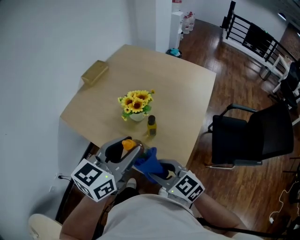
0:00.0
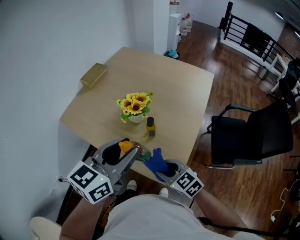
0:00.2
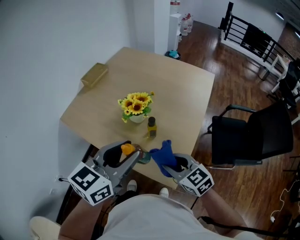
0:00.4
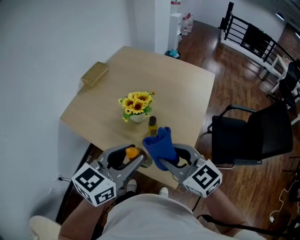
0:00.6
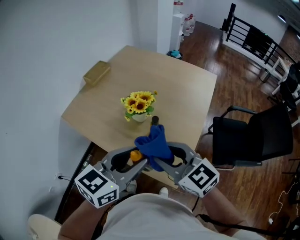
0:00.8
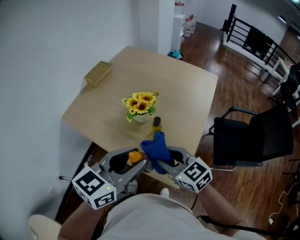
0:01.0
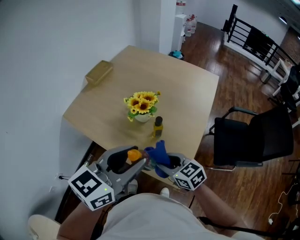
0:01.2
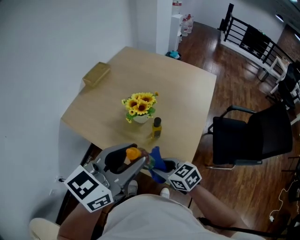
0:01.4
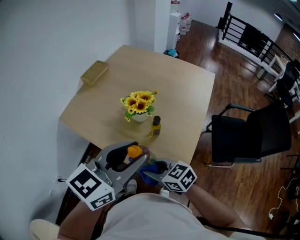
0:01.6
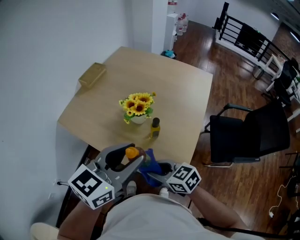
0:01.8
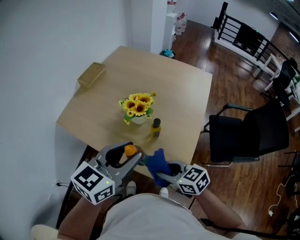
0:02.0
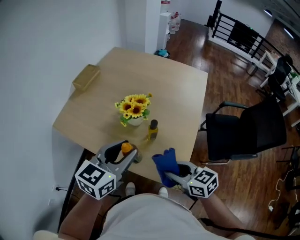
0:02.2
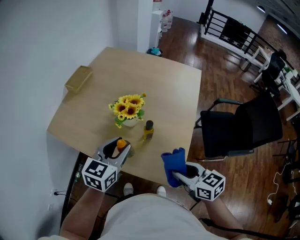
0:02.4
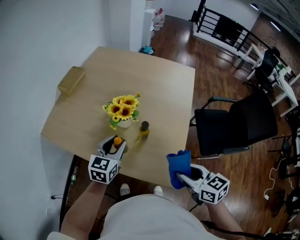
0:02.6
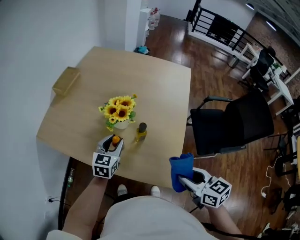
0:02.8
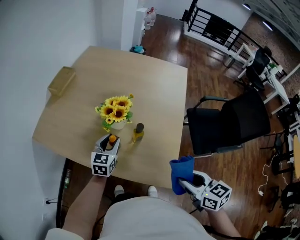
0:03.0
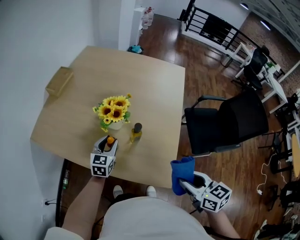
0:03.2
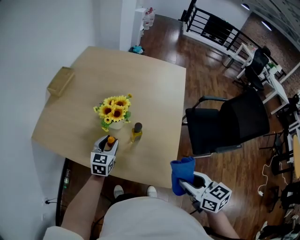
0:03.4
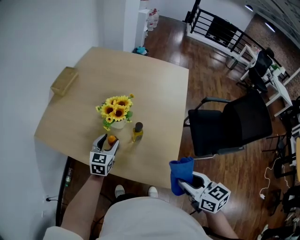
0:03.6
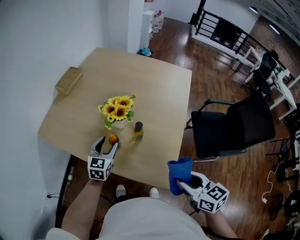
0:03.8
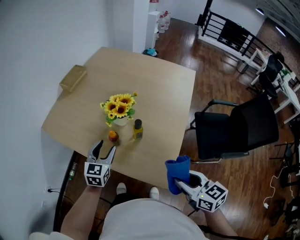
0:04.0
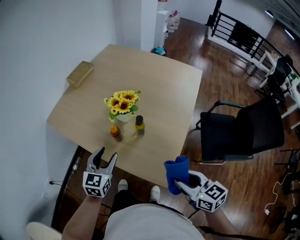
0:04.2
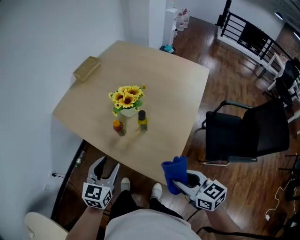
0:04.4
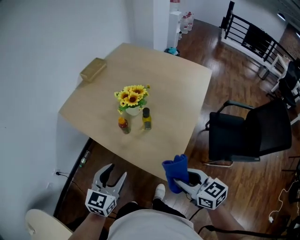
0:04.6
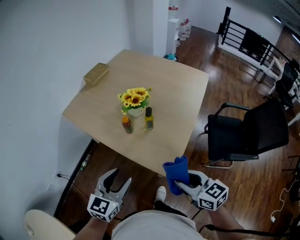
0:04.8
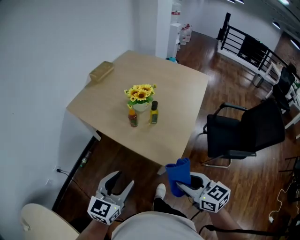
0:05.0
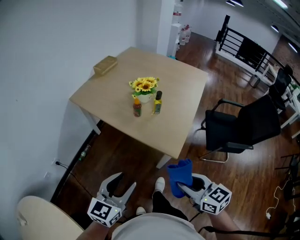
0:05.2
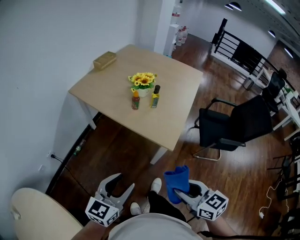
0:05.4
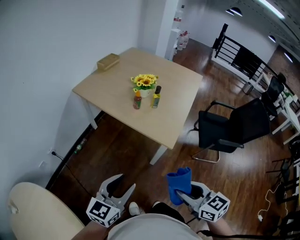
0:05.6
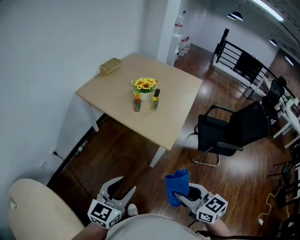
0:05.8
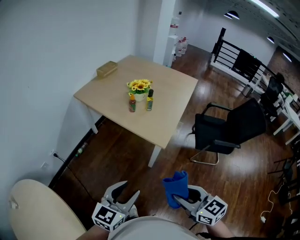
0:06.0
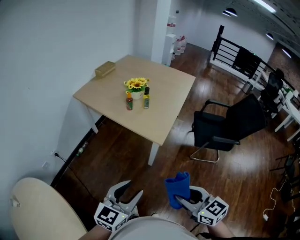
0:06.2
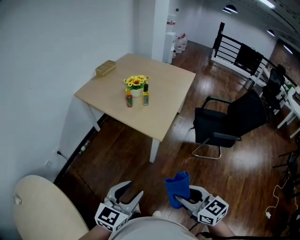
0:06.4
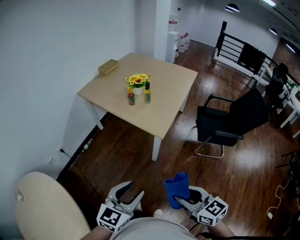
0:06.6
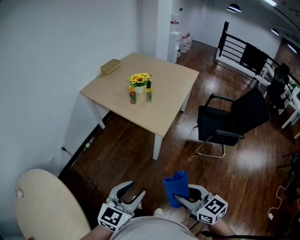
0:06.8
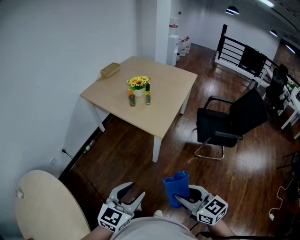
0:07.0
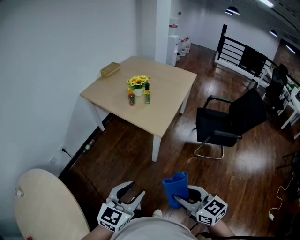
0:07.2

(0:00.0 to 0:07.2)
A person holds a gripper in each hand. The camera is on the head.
0:00.0 - 0:01.4: The right gripper moves up and down over roughly 15 cm, changing direction 2 times. Meanwhile the left gripper shifts by roughly 5 cm.
0:01.4 - 0:02.8: The right gripper travels to the right and upward by roughly 15 cm, and rotates some 30 degrees. Meanwhile the left gripper travels downward and forward by some 30 cm, and turns by about 20 degrees.
0:02.8 - 0:04.4: The right gripper shifts by roughly 5 cm. The left gripper shifts roughly 20 cm backward.
0:04.4 - 0:05.8: The two grippers go approximately 35 cm backward.
0:05.8 - 0:07.2: Both grippers travel together backward and to the right, roughly 15 cm.

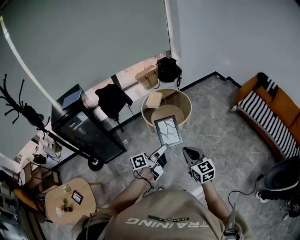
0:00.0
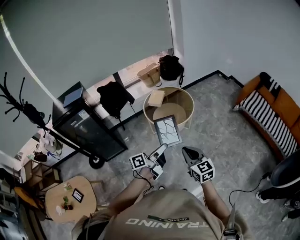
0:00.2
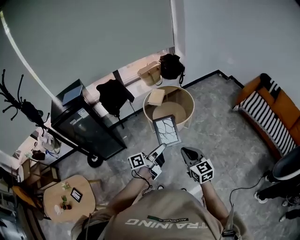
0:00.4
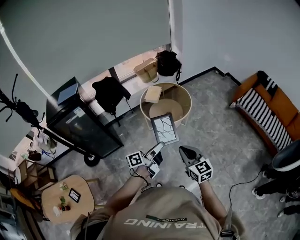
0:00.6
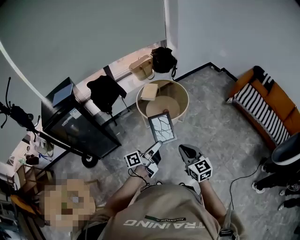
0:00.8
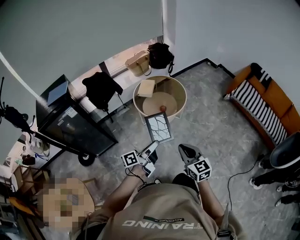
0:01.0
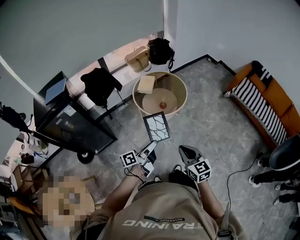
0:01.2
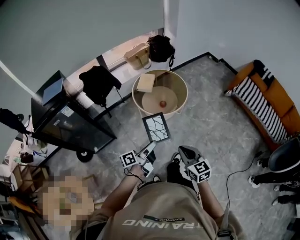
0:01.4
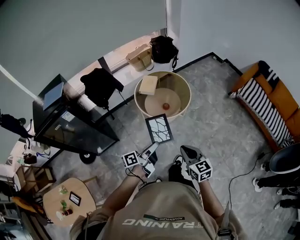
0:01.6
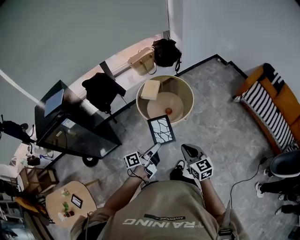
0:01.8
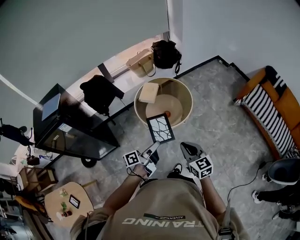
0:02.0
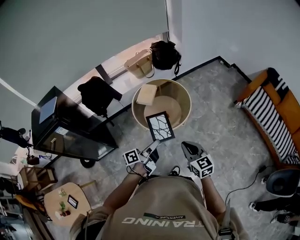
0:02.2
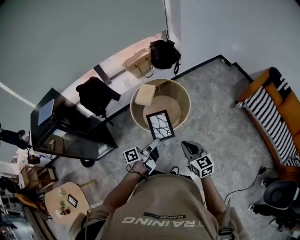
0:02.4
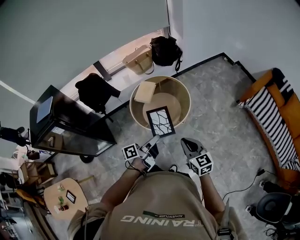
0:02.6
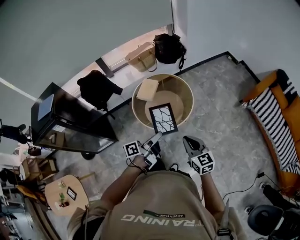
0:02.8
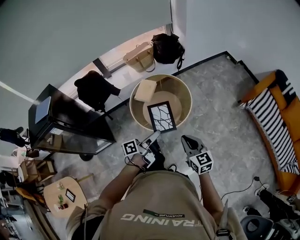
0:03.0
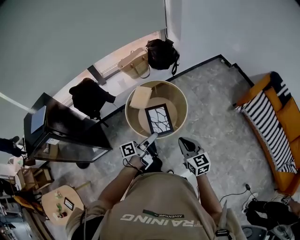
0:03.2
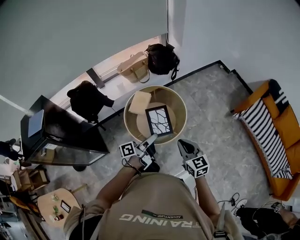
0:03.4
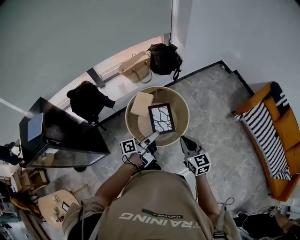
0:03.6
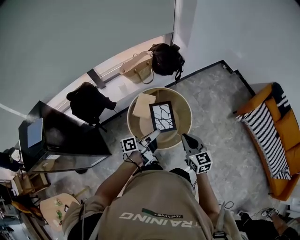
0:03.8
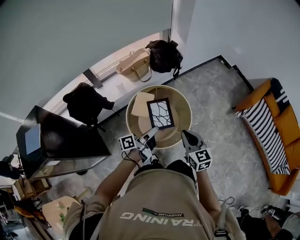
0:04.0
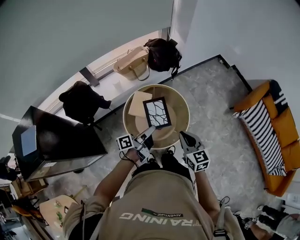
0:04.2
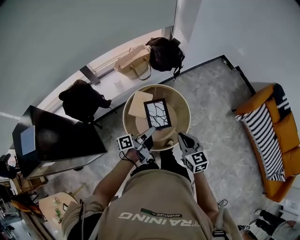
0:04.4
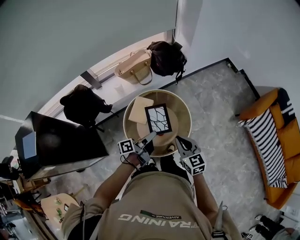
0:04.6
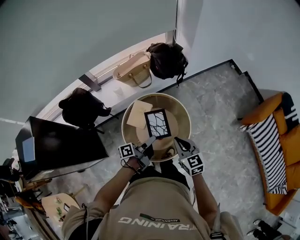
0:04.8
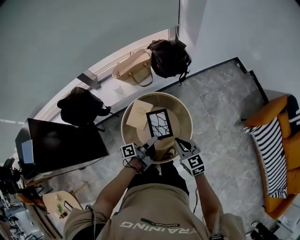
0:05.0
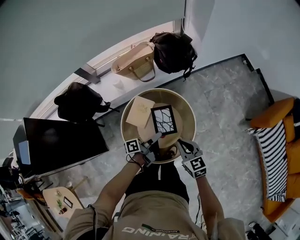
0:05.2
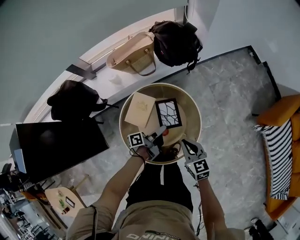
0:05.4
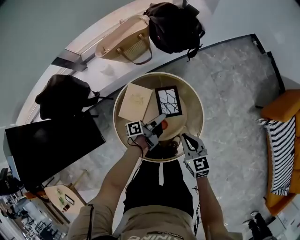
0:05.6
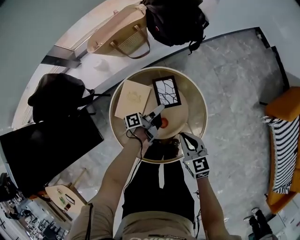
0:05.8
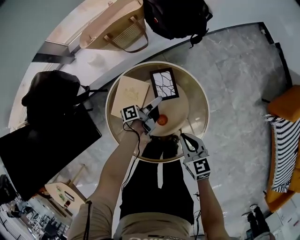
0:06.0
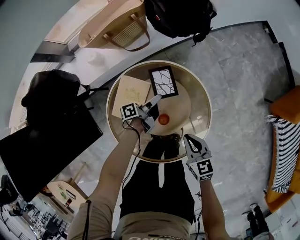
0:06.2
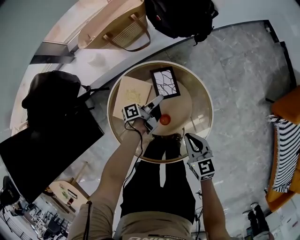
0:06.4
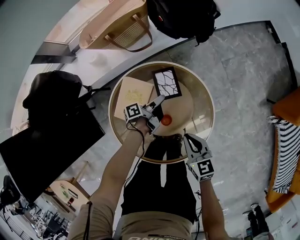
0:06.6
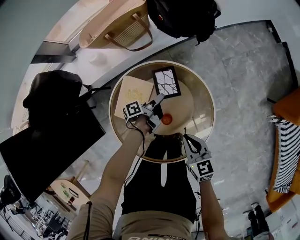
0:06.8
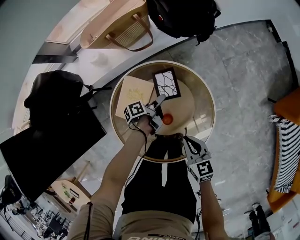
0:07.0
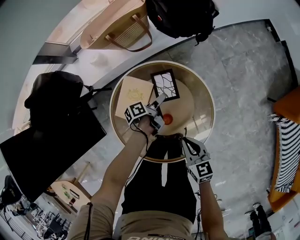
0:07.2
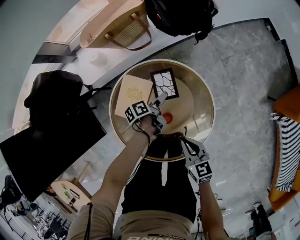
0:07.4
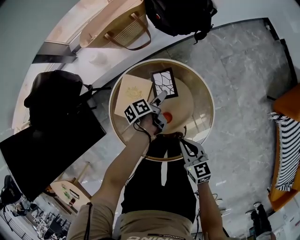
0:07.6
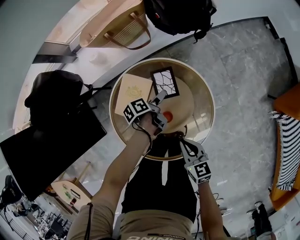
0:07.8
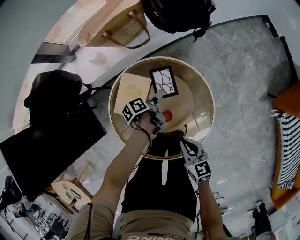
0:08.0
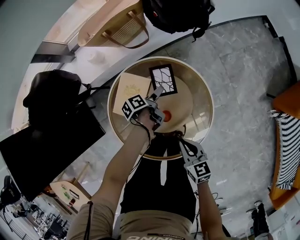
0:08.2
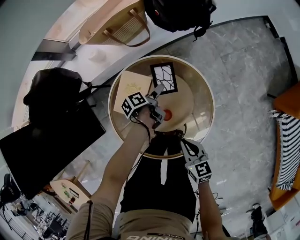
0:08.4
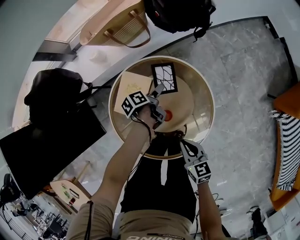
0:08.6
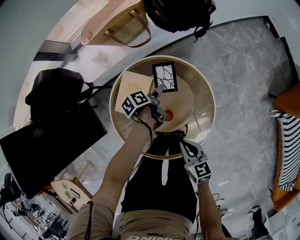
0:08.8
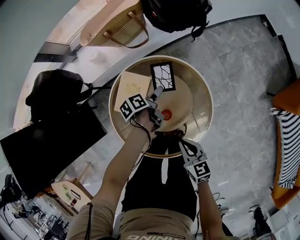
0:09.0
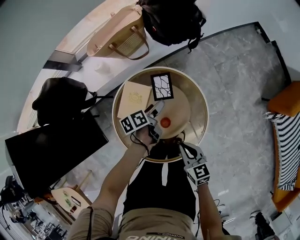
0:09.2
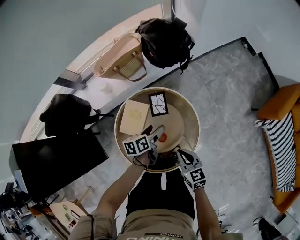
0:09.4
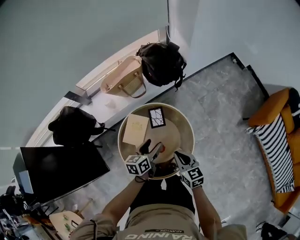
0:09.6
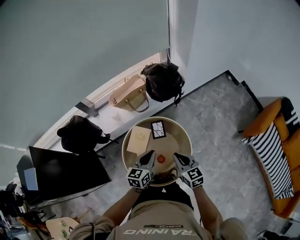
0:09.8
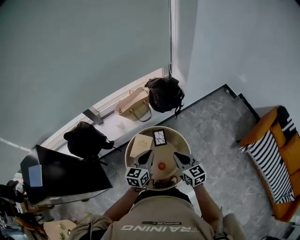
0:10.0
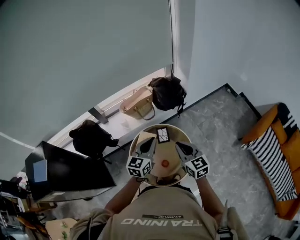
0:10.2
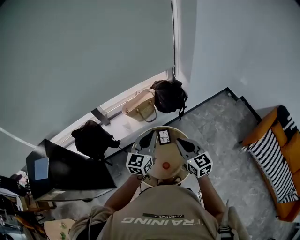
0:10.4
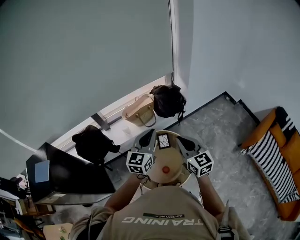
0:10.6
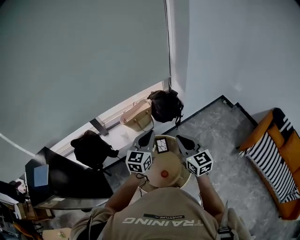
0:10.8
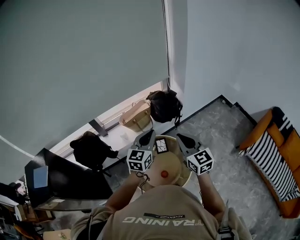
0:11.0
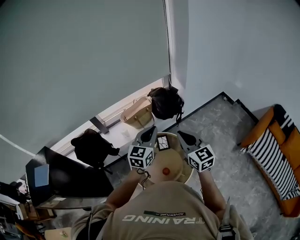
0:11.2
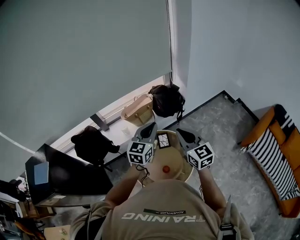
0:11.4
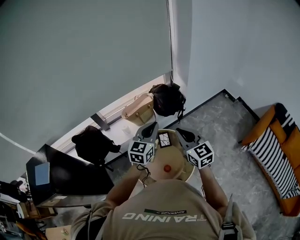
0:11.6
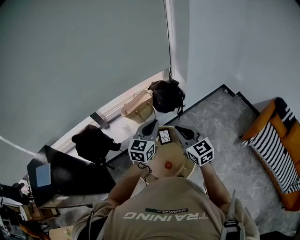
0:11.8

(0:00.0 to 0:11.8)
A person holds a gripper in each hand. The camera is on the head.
0:00.0 - 0:01.4: The right gripper shifts by about 10 cm.
0:01.4 - 0:03.0: The right gripper changes place by about 30 cm.
0:03.0 - 0:04.4: The right gripper changes place by about 25 cm.
0:04.4 - 0:06.0: The right gripper heads downward, covering roughly 30 cm.
0:08.8 - 0:10.4: The right gripper shifts about 50 cm upward, and changes its angle by roughly 30 degrees.
0:10.4 - 0:11.8: The right gripper ends up roughly 5 cm from where it was.

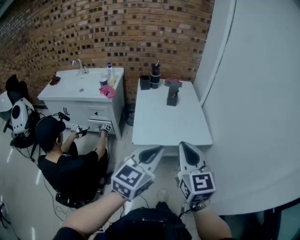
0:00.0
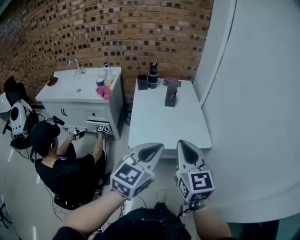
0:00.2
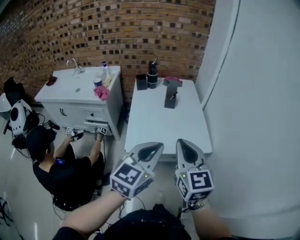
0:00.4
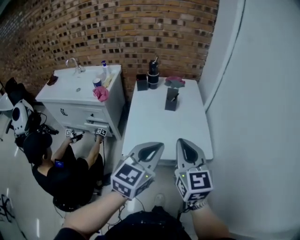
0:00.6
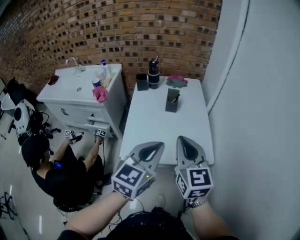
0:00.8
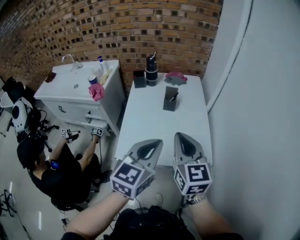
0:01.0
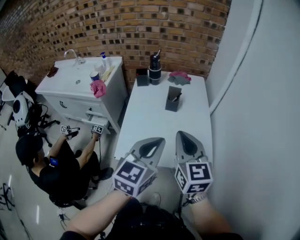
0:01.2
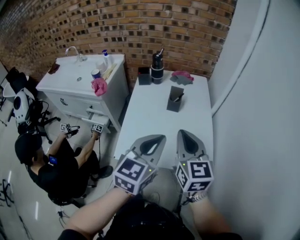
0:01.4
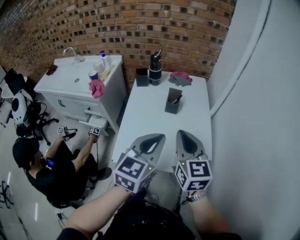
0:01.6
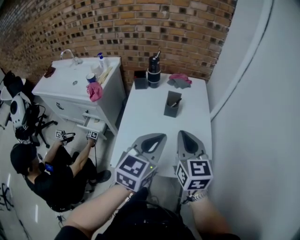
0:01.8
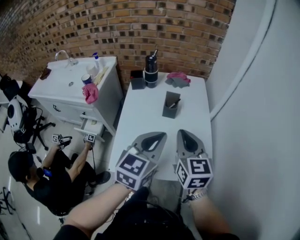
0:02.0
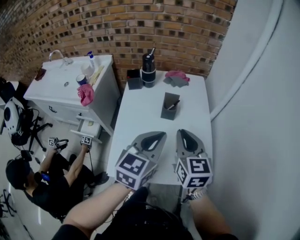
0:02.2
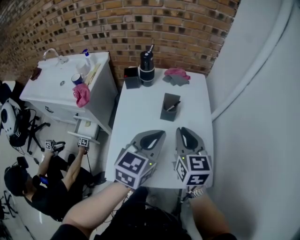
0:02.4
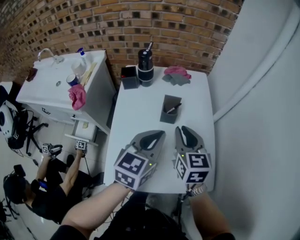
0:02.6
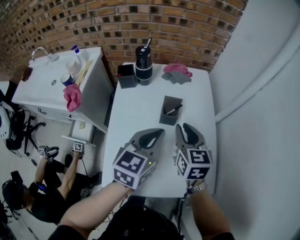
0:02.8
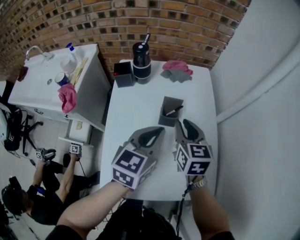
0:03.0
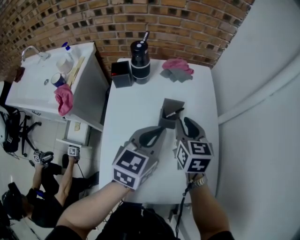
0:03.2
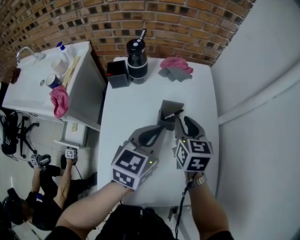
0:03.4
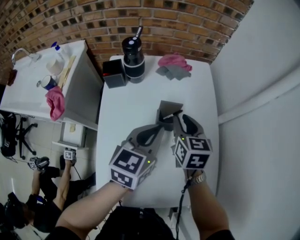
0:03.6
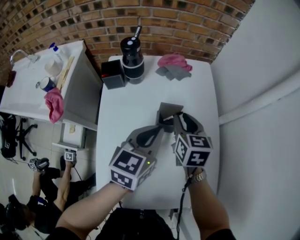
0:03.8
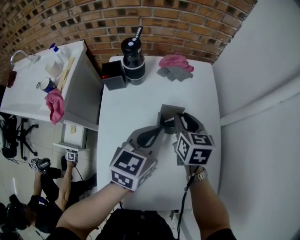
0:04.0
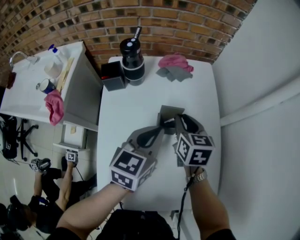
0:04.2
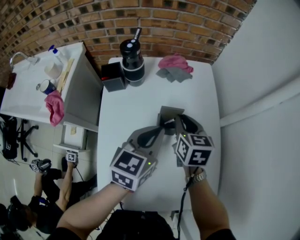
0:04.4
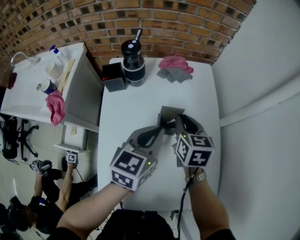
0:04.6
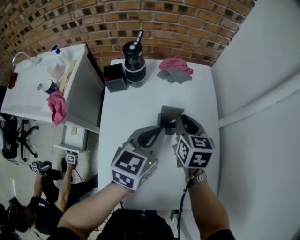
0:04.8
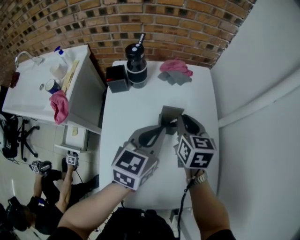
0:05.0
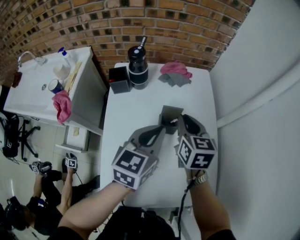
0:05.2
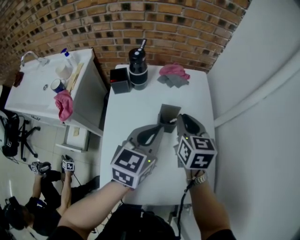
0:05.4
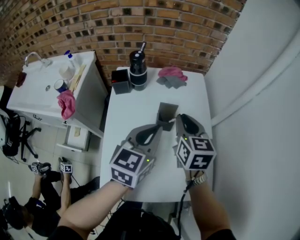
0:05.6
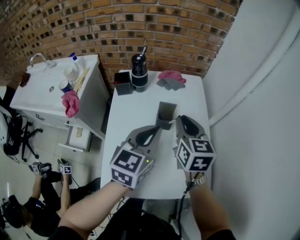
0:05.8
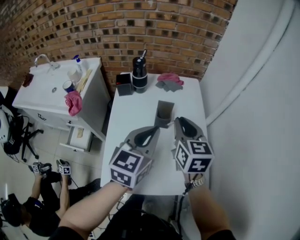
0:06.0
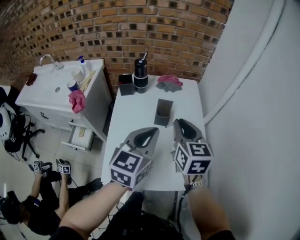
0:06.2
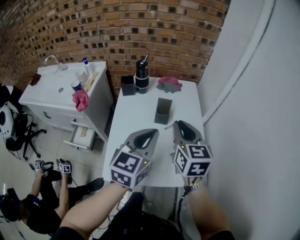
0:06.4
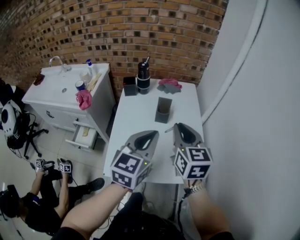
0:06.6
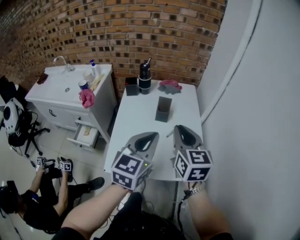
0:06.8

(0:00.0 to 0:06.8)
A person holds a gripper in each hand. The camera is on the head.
0:00.0 - 0:01.4: The two grippers go some 30 cm forward.
0:01.4 - 0:02.8: The grippers both shift forward and downward by roughly 25 cm.
0:02.8 - 0:04.0: Both grippers travel together forward and downward, roughly 15 cm.
0:04.0 - 0:05.4: Both grippers travel together upward, about 5 cm.
0:05.4 - 0:06.8: The right gripper moves backward and upward, approximately 30 cm. Meanwhile the left gripper is displaced backward by approximately 25 cm.
